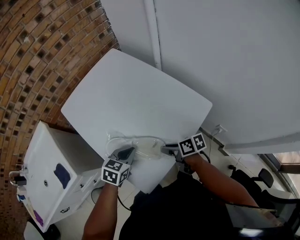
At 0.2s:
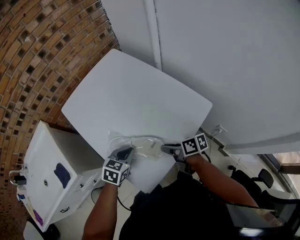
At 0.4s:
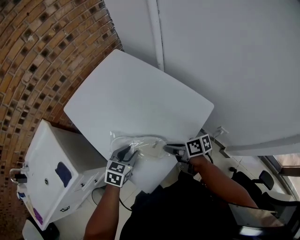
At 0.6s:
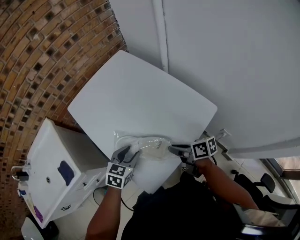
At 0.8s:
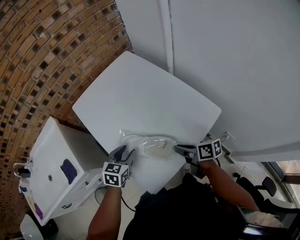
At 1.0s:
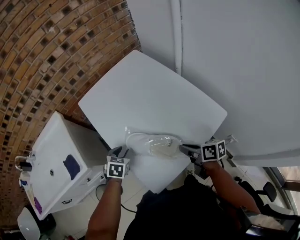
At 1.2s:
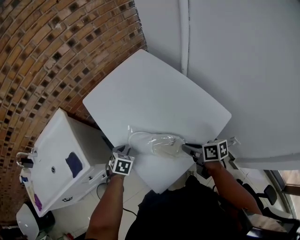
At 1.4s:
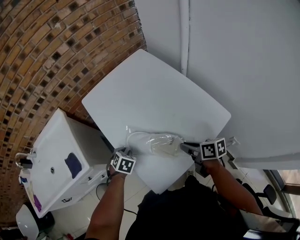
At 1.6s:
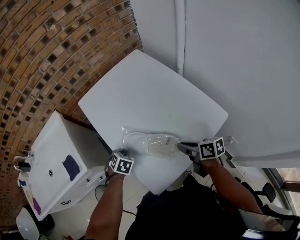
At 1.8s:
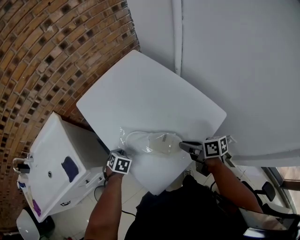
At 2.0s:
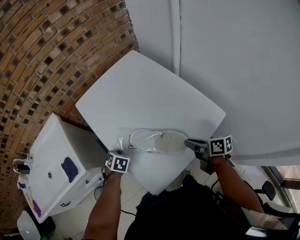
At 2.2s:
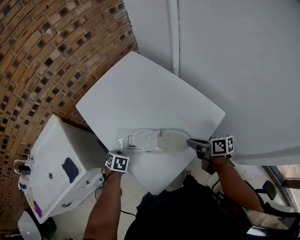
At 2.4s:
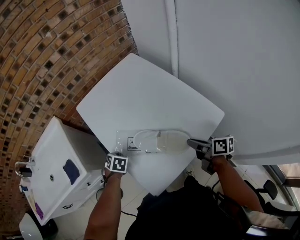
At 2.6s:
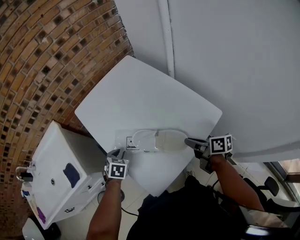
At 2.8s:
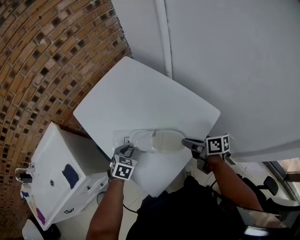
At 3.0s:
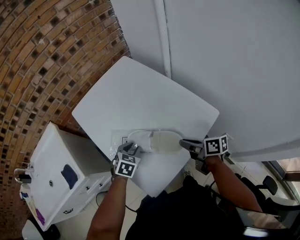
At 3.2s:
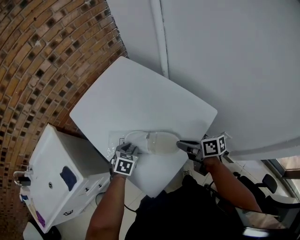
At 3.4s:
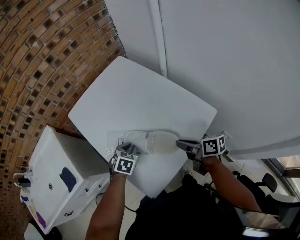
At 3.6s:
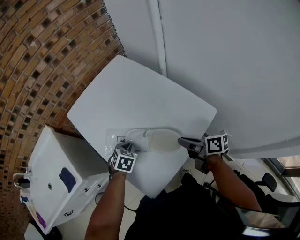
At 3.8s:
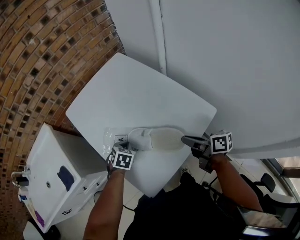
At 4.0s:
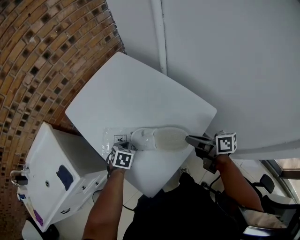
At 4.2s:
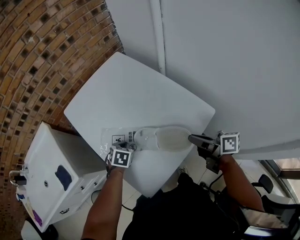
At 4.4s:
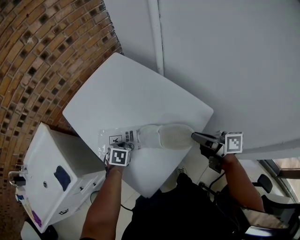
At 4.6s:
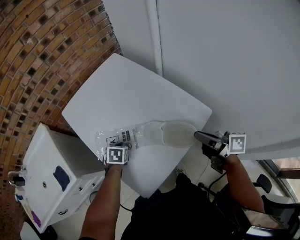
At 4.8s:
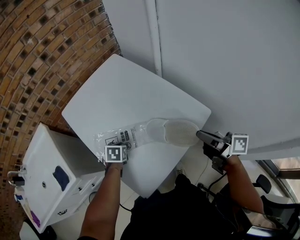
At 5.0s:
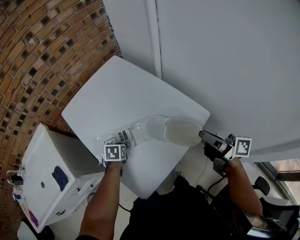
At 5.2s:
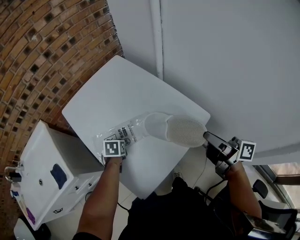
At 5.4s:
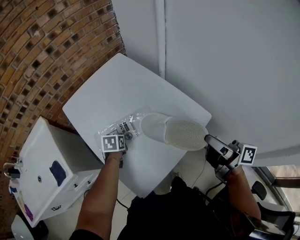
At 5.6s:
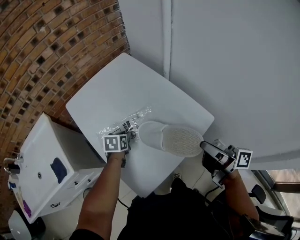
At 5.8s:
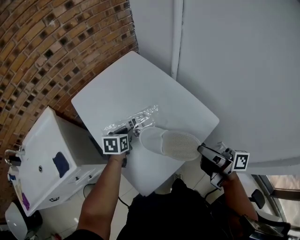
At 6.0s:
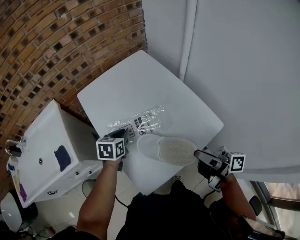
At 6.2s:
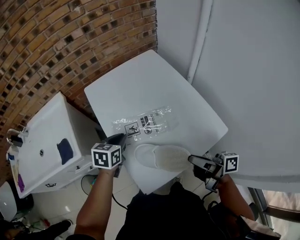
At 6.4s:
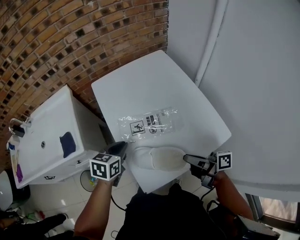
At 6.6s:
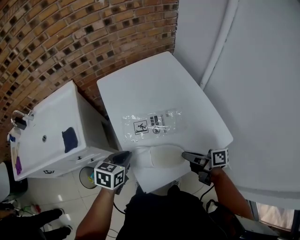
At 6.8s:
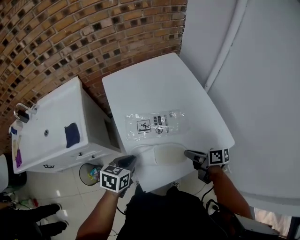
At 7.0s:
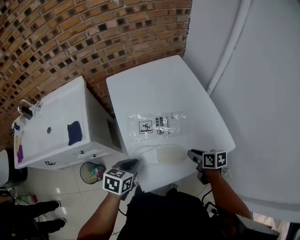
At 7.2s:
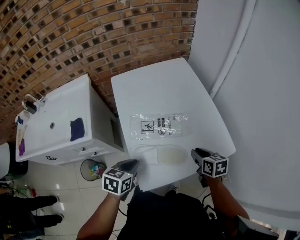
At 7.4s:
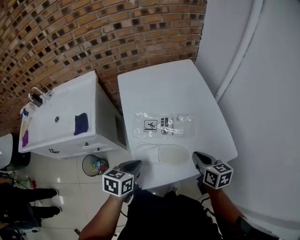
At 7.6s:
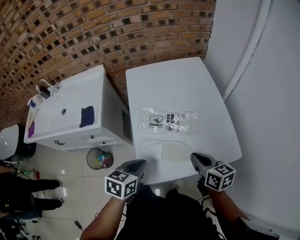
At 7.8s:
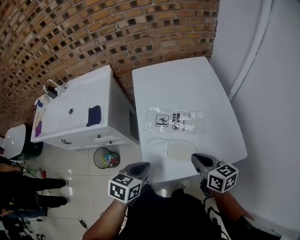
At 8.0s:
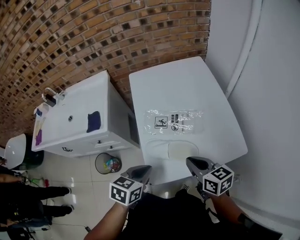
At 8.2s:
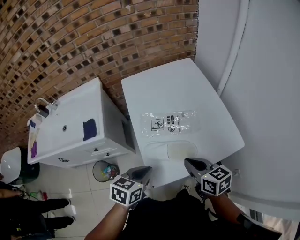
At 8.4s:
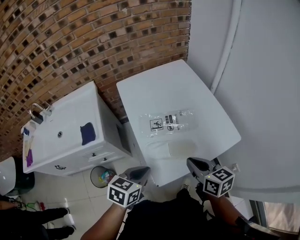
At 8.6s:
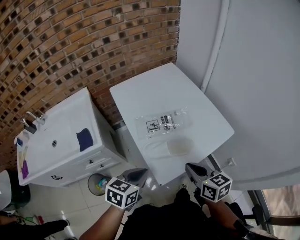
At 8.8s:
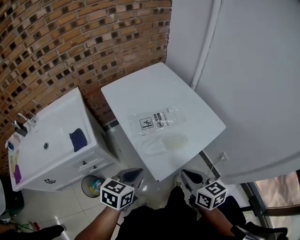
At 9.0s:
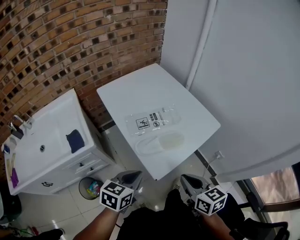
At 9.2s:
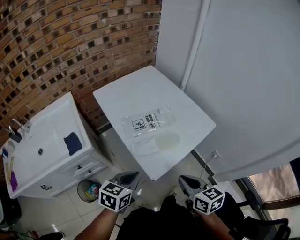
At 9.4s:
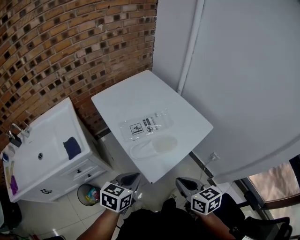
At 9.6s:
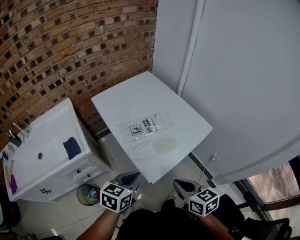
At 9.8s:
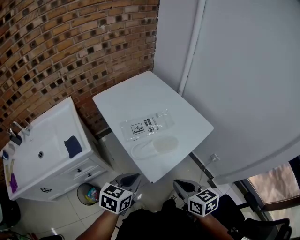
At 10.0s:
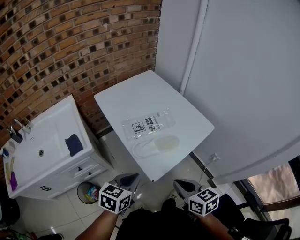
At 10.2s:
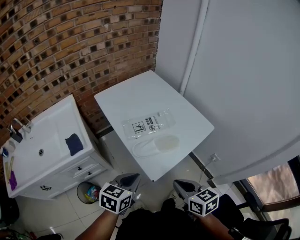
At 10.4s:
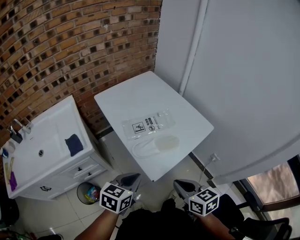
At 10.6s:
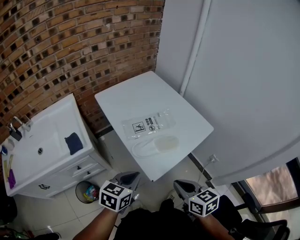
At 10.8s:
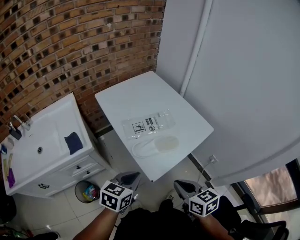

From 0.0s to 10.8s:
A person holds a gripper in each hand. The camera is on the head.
From 0.0s to 1.6s: The left gripper moves to the left and downward, about 15 cm, changes its angle by about 40 degrees, and opens, then closes once more. Meanwhile the right gripper goes some 5 cm upward.
From 1.6s to 3.0s: The left gripper is displaced to the right and upward by roughly 15 cm, and opens its fingers; the right gripper is displaced to the right by about 5 cm.
From 3.0s to 4.6s: The right gripper heads to the right and upward, covering roughly 10 cm; the left gripper shifts by some 5 cm, swivels about 20 degrees, and closes its fingers.
From 4.6s to 6.2s: The right gripper shifts about 10 cm to the left, and swivels approximately 30 degrees. The left gripper is displaced upward and to the left by some 15 cm, and rotates approximately 30 degrees.
From 6.2s to 7.8s: The left gripper travels backward by roughly 20 cm; the right gripper reaches some 15 cm downward, then returns, and twists approximately 40 degrees counterclockwise, seen from behind.
From 7.8s to 9.2s: The left gripper changes place by approximately 10 cm, and turns by about 30 degrees, while the right gripper moves about 20 cm, and turns by some 30 degrees.
From 9.2s to 10.8s: The grippers move only a little.

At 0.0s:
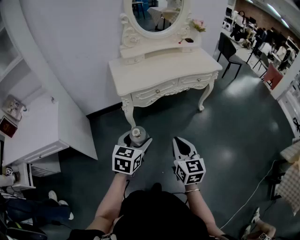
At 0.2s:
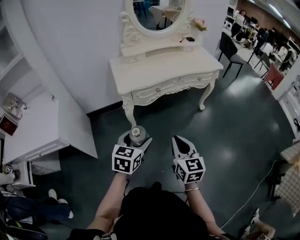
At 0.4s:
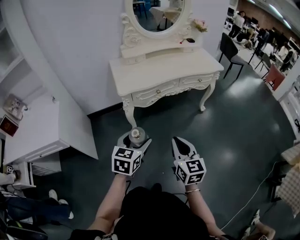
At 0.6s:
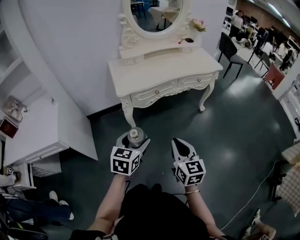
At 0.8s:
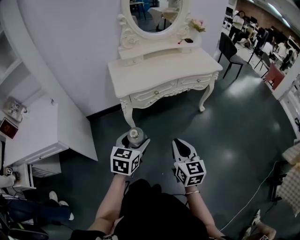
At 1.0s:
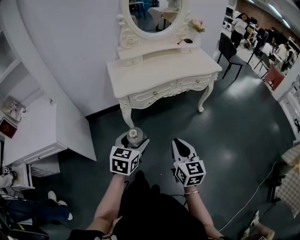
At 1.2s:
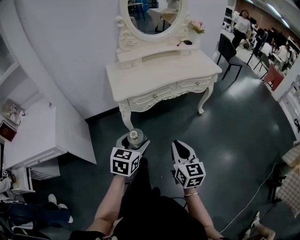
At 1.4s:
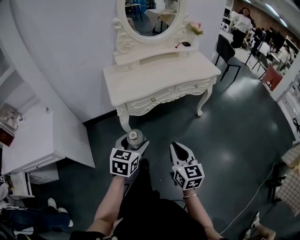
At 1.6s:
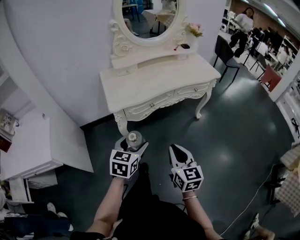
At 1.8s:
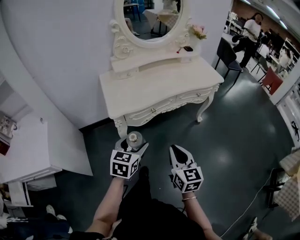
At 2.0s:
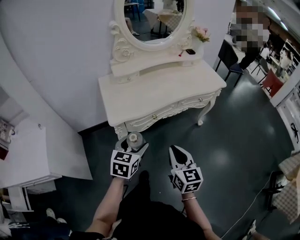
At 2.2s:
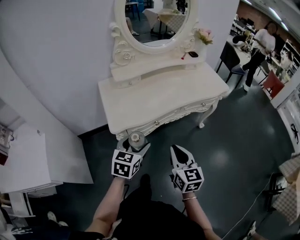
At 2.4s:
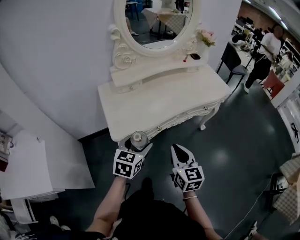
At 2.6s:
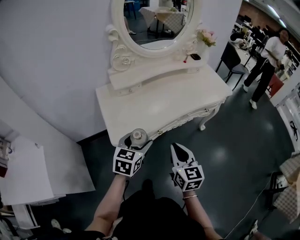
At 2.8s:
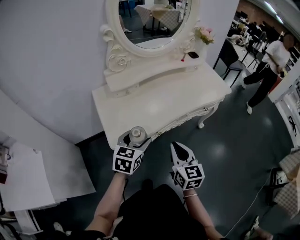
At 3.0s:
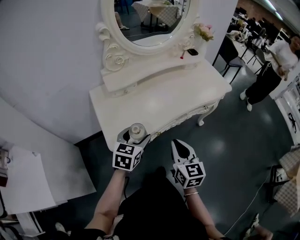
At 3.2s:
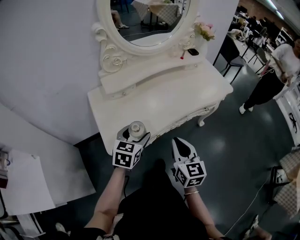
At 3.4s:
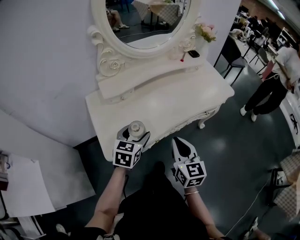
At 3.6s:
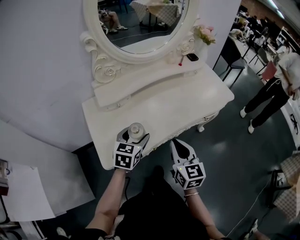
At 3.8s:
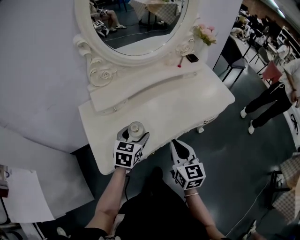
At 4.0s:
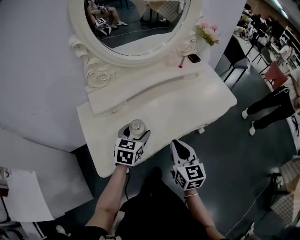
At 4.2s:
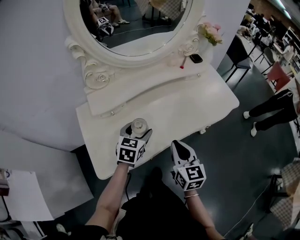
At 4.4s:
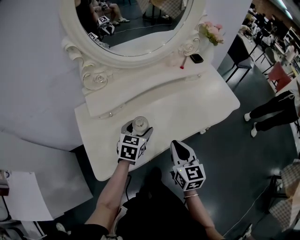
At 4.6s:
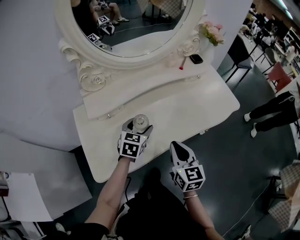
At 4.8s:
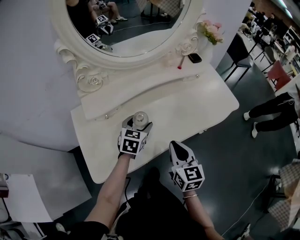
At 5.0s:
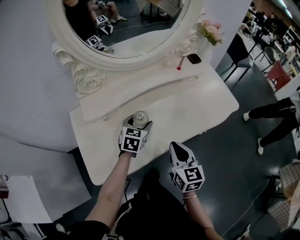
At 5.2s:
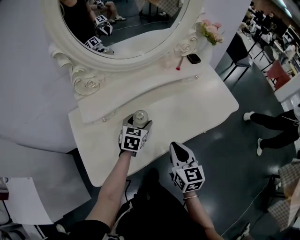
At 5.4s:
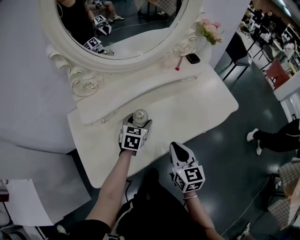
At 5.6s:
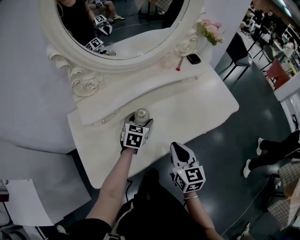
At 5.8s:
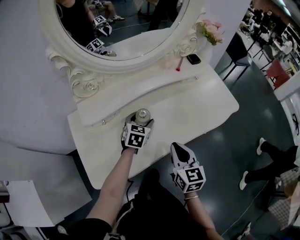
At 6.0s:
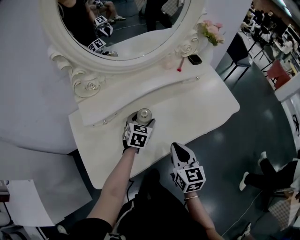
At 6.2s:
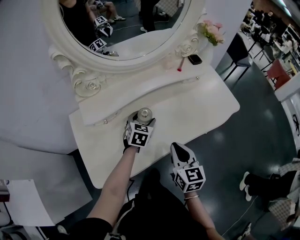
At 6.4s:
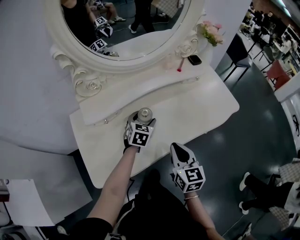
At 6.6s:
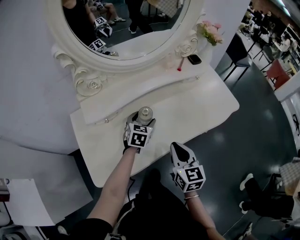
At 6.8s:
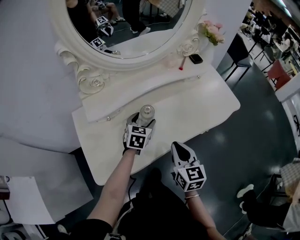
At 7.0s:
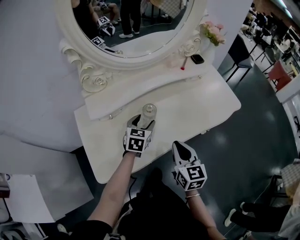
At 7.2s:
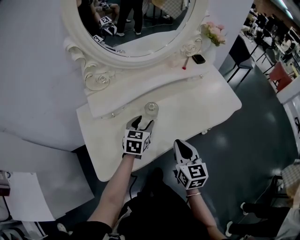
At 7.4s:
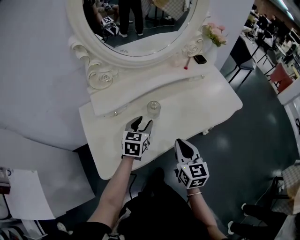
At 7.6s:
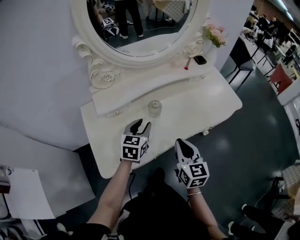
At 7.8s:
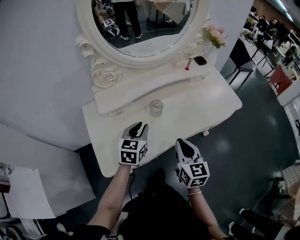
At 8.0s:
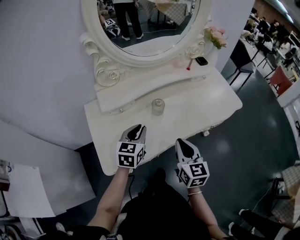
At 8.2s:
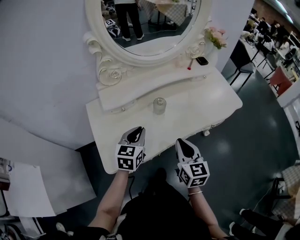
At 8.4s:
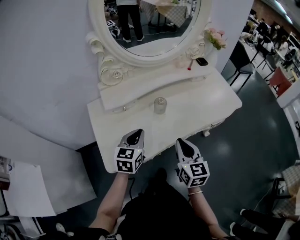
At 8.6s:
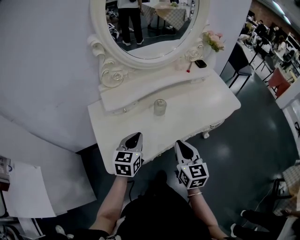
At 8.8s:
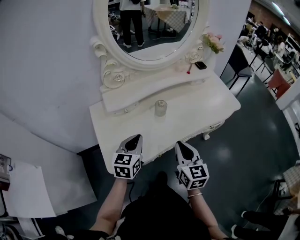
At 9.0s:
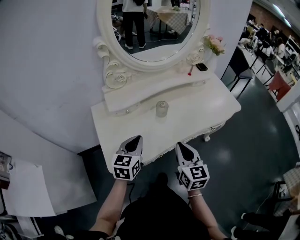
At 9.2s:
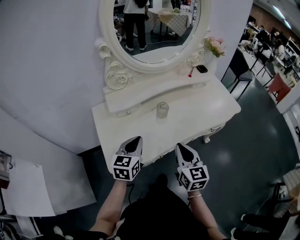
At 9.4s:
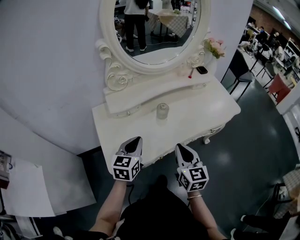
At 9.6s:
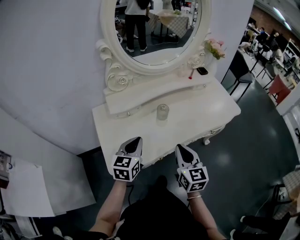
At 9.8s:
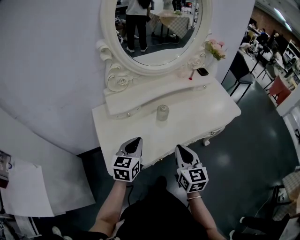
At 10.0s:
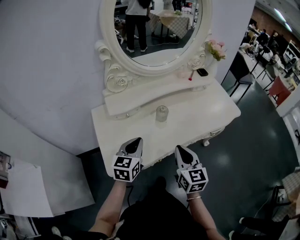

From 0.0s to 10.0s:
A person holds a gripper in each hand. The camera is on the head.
From 0.0s to 1.4s: The two grippers go approximately 5 cm forward.
From 1.4s to 2.8s: The grippers both shift forward by approximately 30 cm.
From 2.8s to 4.2s: The two grippers go some 20 cm forward.
From 4.2s to 5.8s: The right gripper shifts by roughly 5 cm. Meanwhile the left gripper is displaced forward and downward by some 15 cm.
From 5.8s to 7.2s: The left gripper shifts about 5 cm backward.
From 7.2s to 8.6s: The left gripper is displaced backward, to the left and upward by about 15 cm, and closes up; the right gripper goes approximately 5 cm backward.
From 8.6s to 10.0s: The grippers make only small movements.

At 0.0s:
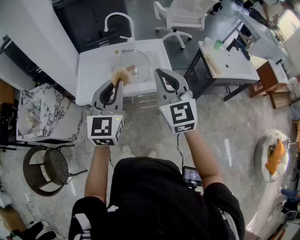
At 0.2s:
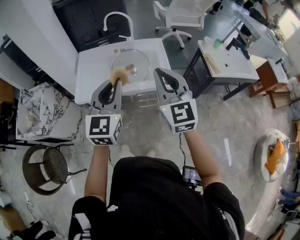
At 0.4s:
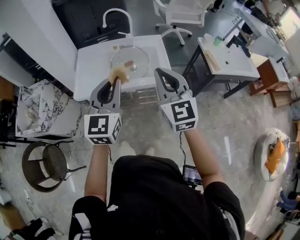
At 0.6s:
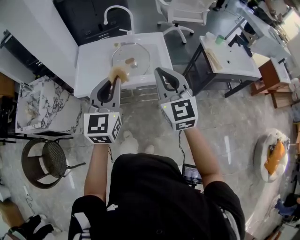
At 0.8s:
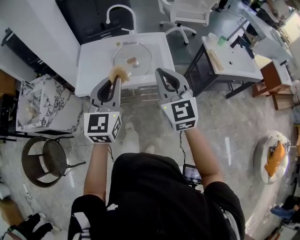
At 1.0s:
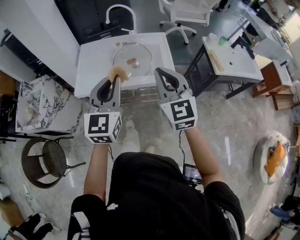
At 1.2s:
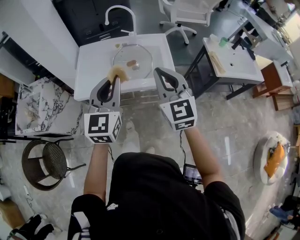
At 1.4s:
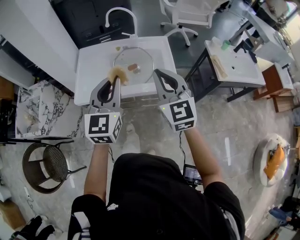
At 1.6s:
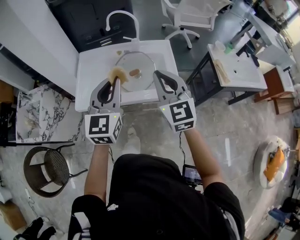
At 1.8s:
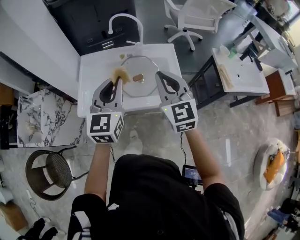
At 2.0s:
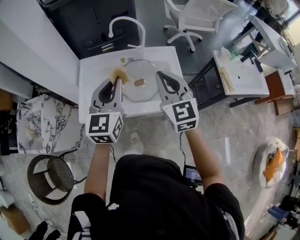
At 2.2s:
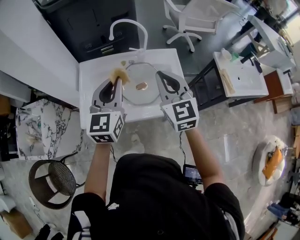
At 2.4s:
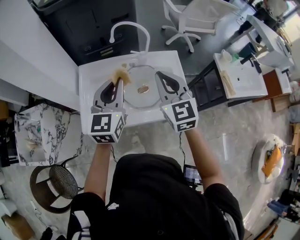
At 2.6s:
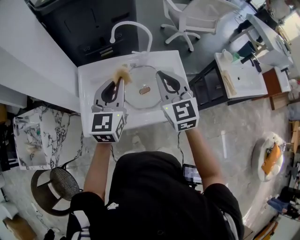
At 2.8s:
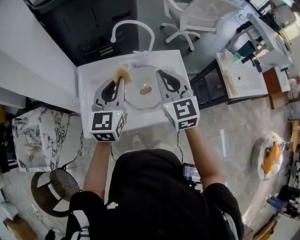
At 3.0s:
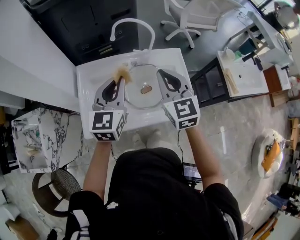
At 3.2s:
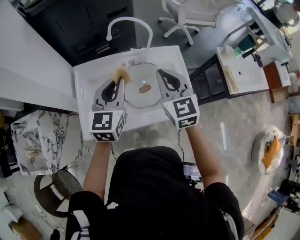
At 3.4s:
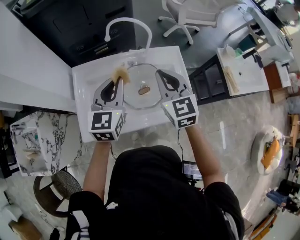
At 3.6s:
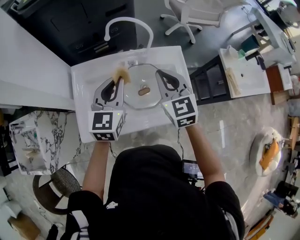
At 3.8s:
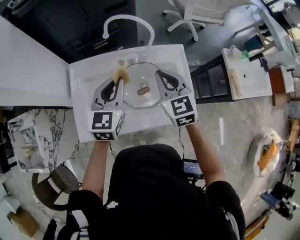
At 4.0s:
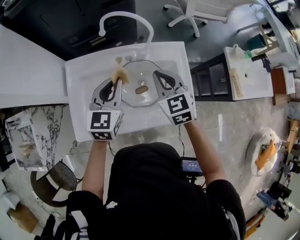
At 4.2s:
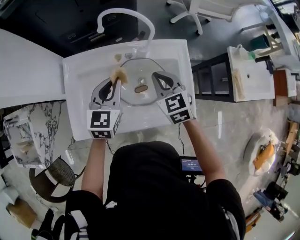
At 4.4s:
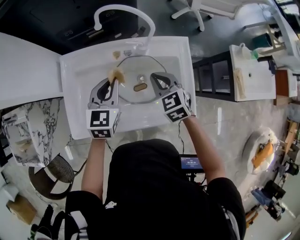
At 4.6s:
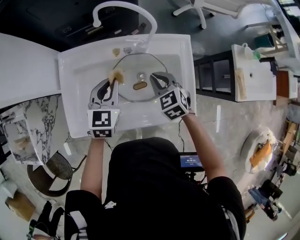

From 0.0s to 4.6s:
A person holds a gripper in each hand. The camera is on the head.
From 0.0s to 1.6s: The grippers both shift forward by roughly 10 cm.
From 1.6s to 3.0s: The right gripper goes about 20 cm forward and to the left. Meanwhile the left gripper goes roughly 20 cm forward.
From 3.0s to 4.6s: The left gripper moves downward and forward, approximately 20 cm, and turns by approximately 20 degrees. Meanwhile the right gripper moves downward, roughly 20 cm, and tips its fingers downward by approximately 30 degrees.
